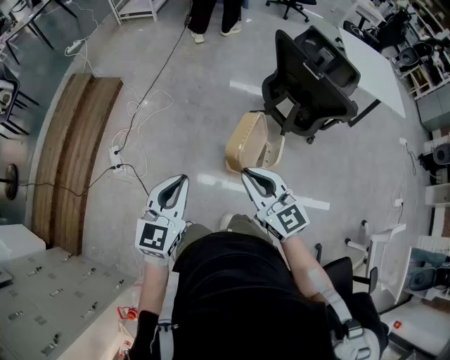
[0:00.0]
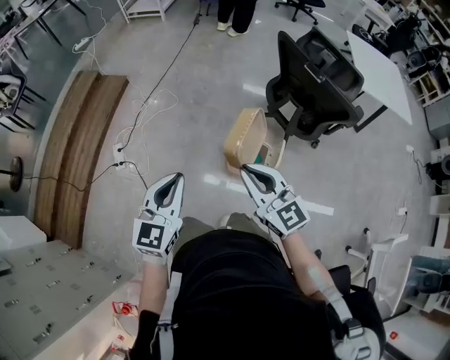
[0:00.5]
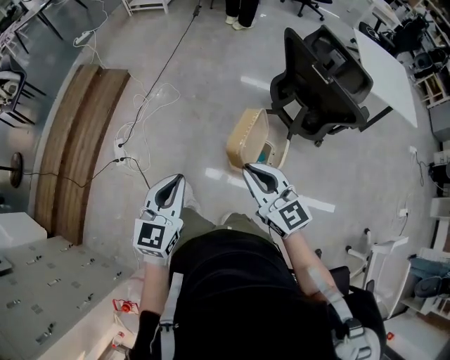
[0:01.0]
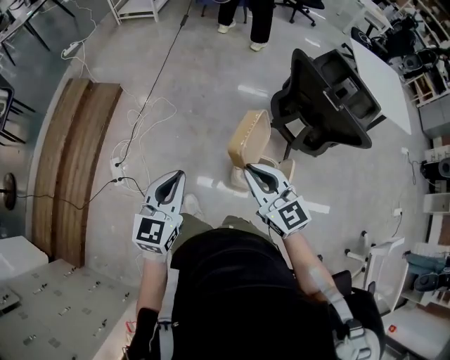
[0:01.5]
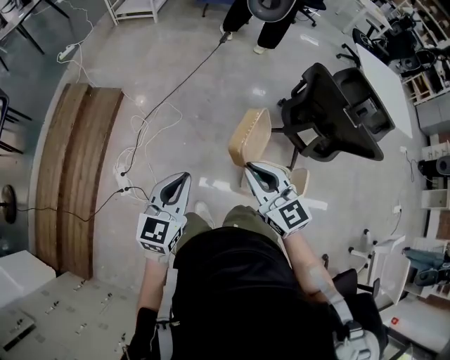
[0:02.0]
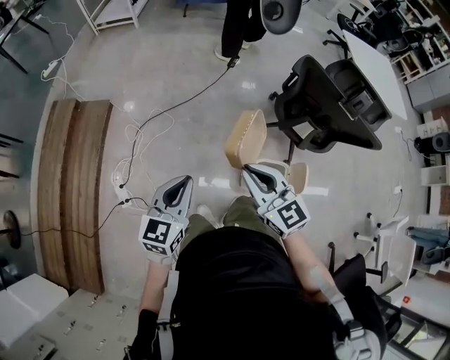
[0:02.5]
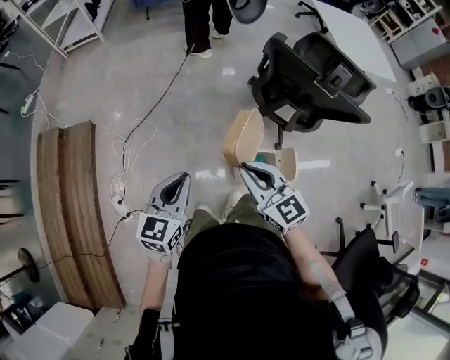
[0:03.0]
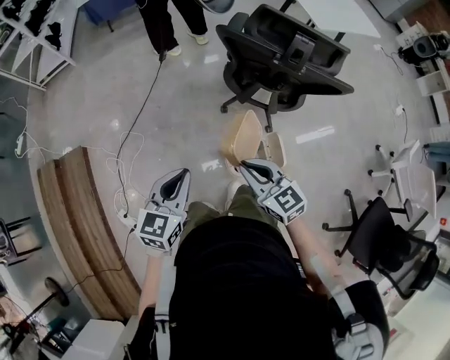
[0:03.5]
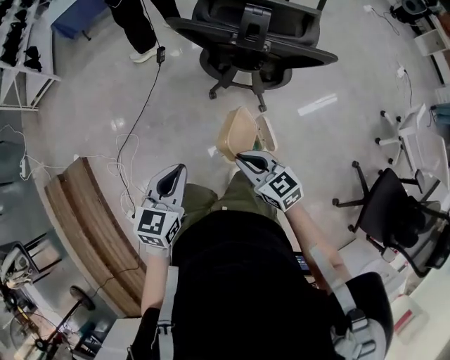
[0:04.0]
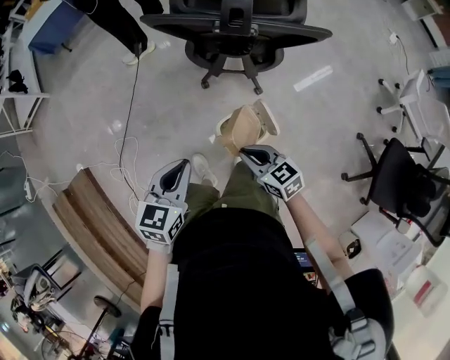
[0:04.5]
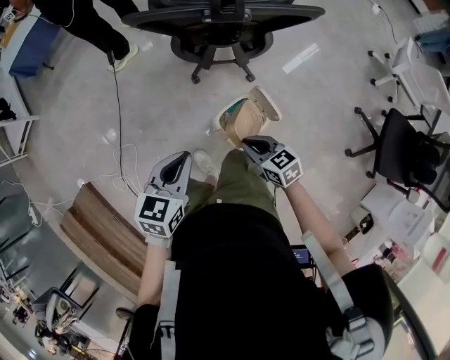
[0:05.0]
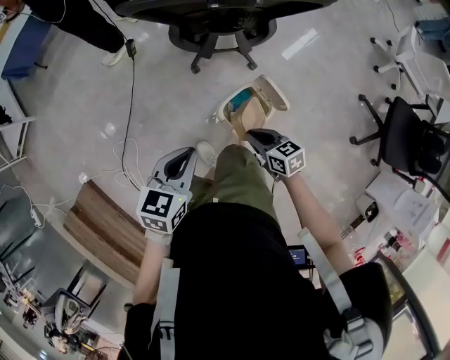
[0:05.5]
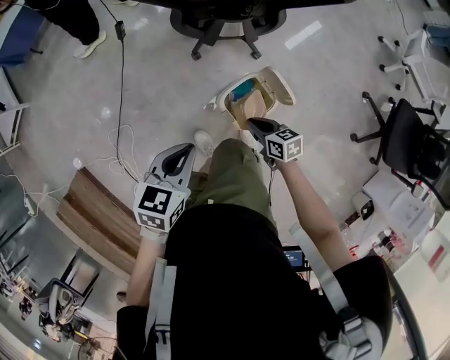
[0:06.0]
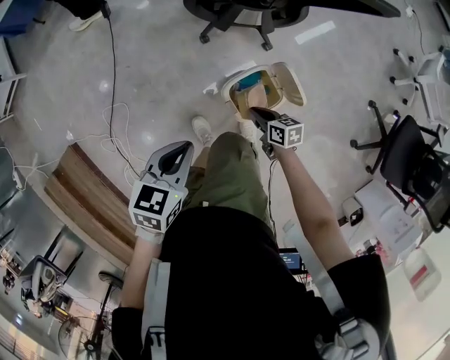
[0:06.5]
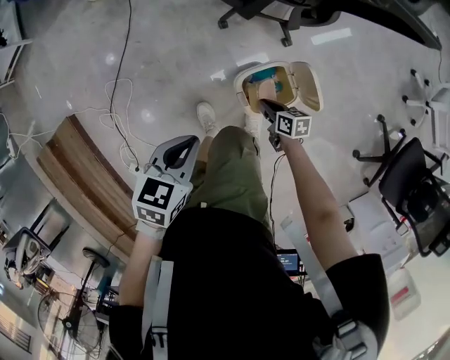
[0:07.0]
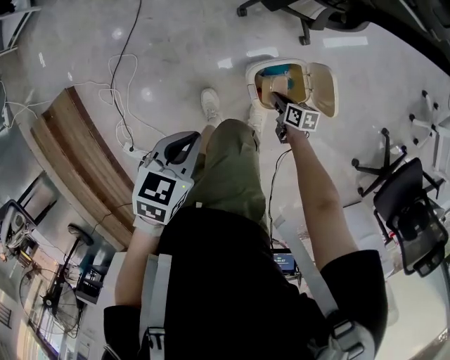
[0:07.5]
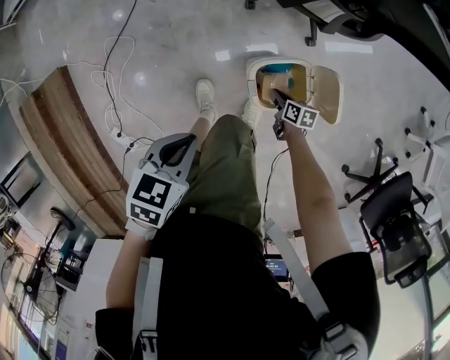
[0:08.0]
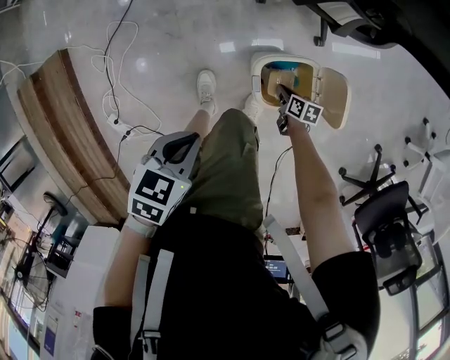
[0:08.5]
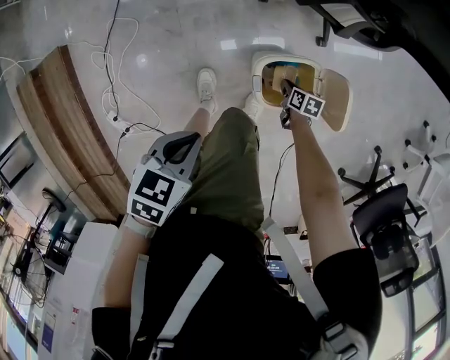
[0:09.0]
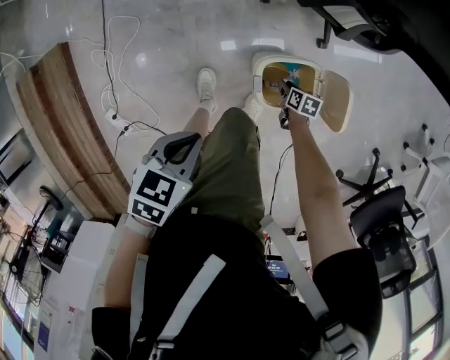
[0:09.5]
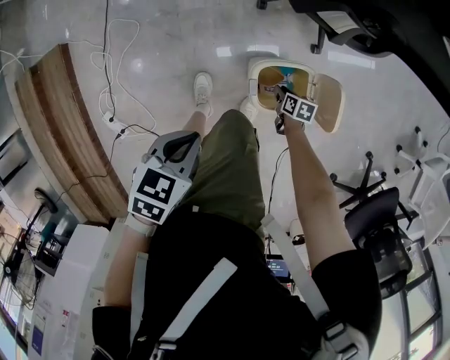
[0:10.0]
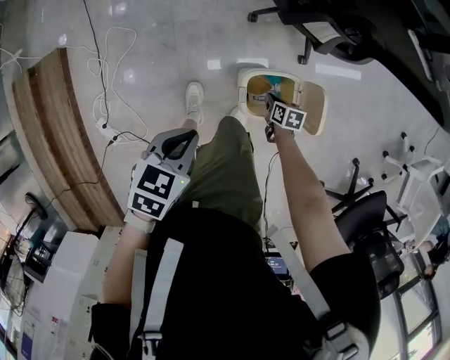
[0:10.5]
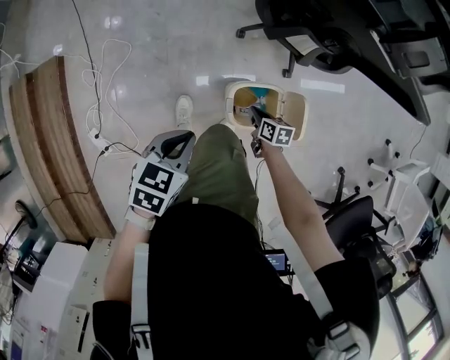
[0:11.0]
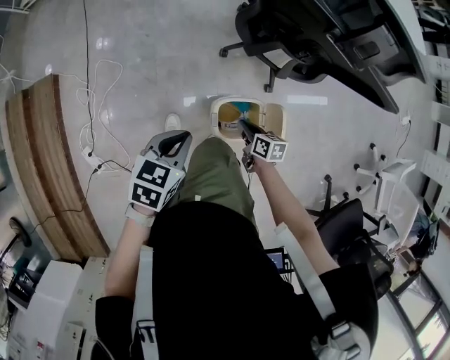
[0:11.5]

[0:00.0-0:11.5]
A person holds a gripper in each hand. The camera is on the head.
0:00.0 to 0:02.0: The two grippers go about 30 cm forward and to the left.
0:02.0 to 0:04.0: The left gripper moves approximately 30 cm, and swivels about 40 degrees. Meanwhile the right gripper shifts by approximately 30 cm, and rotates about 30 degrees.
0:04.0 to 0:06.0: The left gripper moves downward and forward, roughly 15 cm, and swivels roughly 30 degrees, while the right gripper moves downward, about 25 cm, and changes its angle by some 40 degrees.
0:06.0 to 0:07.5: The left gripper moves downward and to the left, some 10 cm, while the right gripper moves downward, approximately 20 cm.
0:07.5 to 0:09.5: The right gripper travels downward by roughly 10 cm, and opens; the left gripper moves roughly 5 cm.
0:09.5 to 0:11.5: The left gripper travels upward by about 10 cm. The right gripper goes about 25 cm upward, changes its angle by about 20 degrees, and closes its fingers.

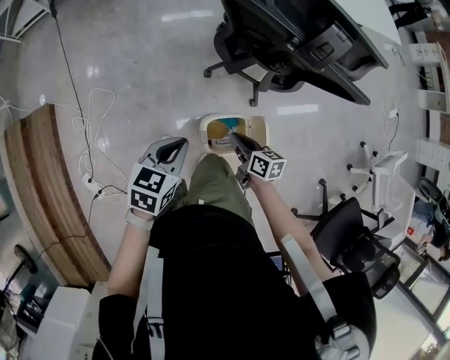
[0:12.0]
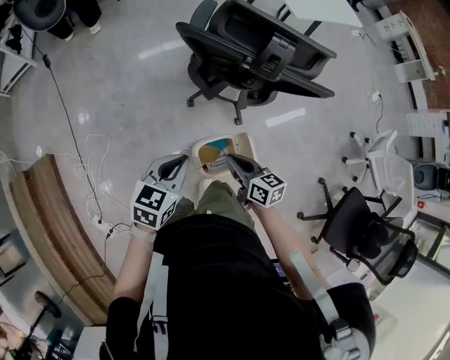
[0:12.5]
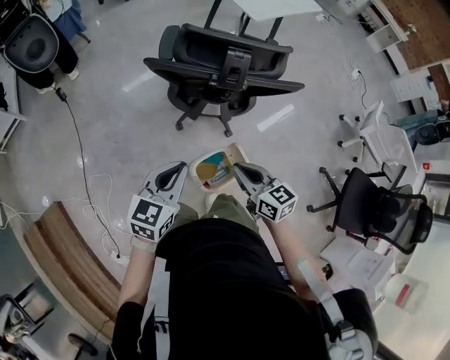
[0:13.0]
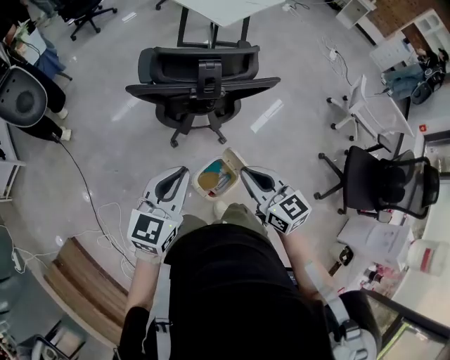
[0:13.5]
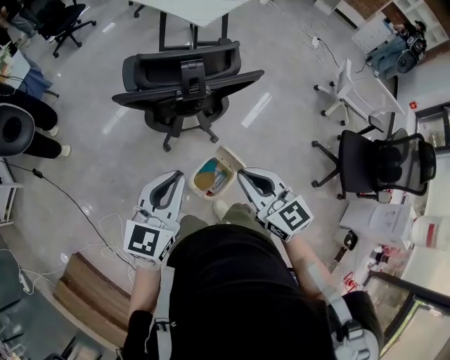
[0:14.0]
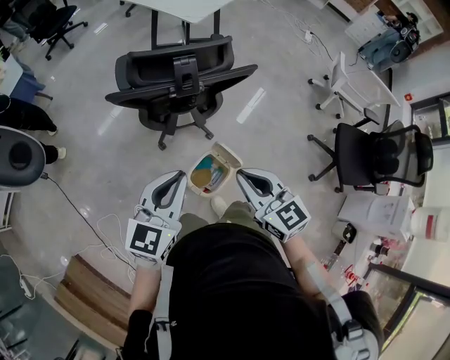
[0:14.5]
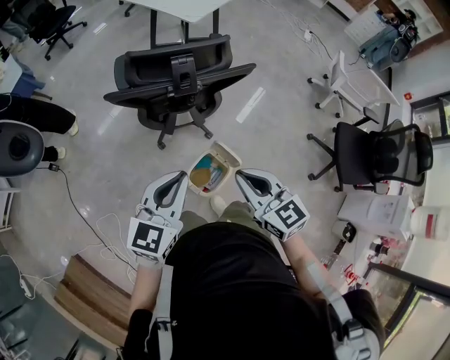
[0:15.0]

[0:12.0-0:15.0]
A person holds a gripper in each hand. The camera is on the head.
0:12.0 to 0:13.5: The two grippers go some 25 cm upward. The left gripper turns by some 40 degrees, while the right gripper turns by roughly 40 degrees.
0:13.5 to 0:15.0: The grippers move only a little.

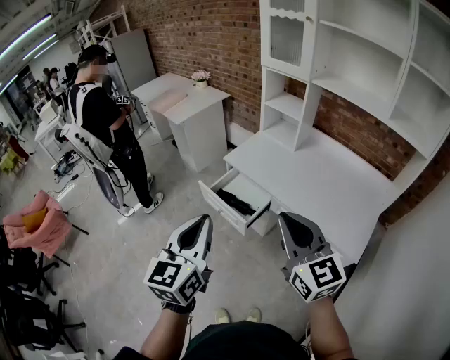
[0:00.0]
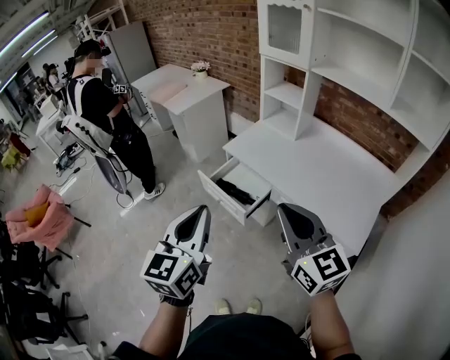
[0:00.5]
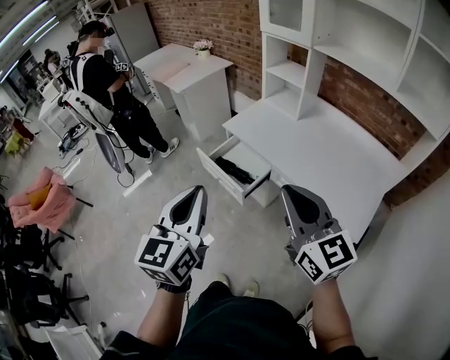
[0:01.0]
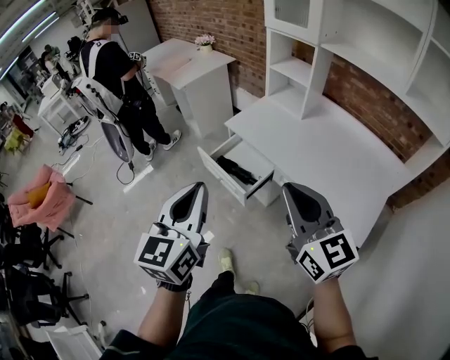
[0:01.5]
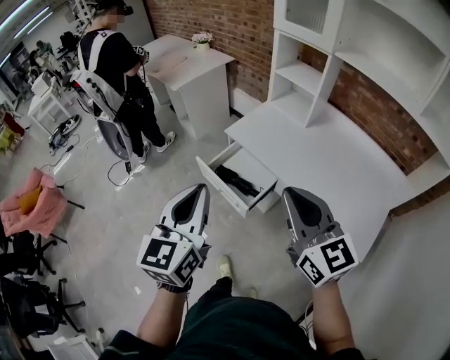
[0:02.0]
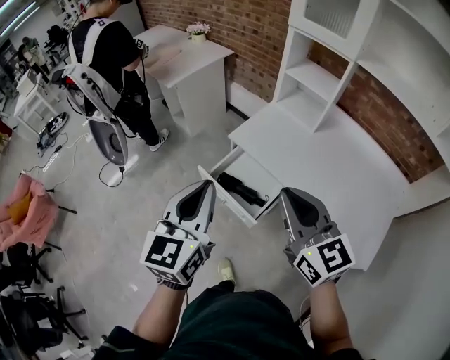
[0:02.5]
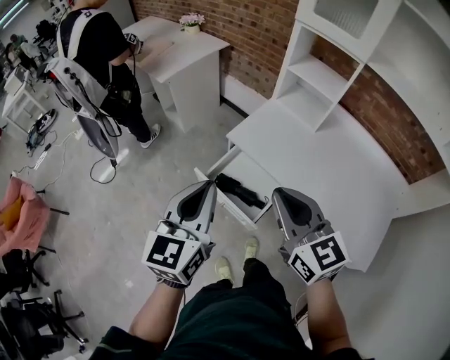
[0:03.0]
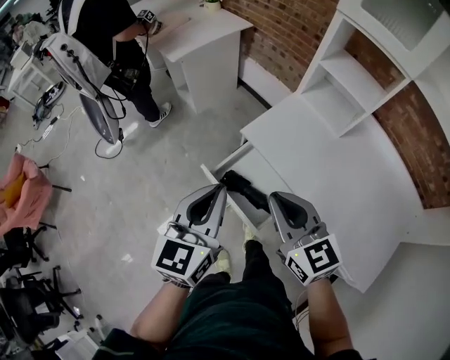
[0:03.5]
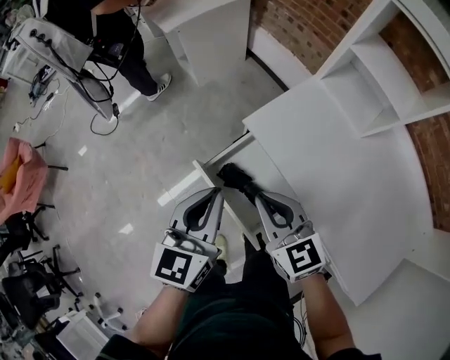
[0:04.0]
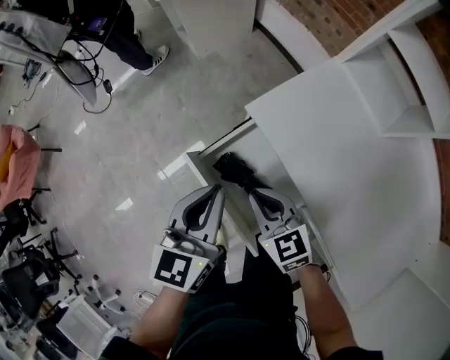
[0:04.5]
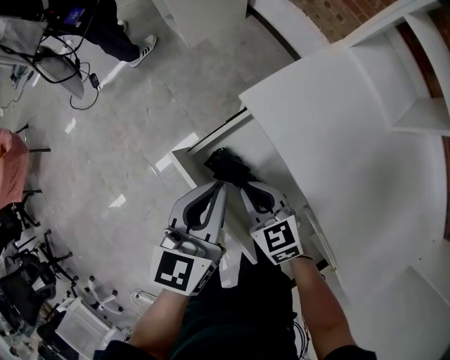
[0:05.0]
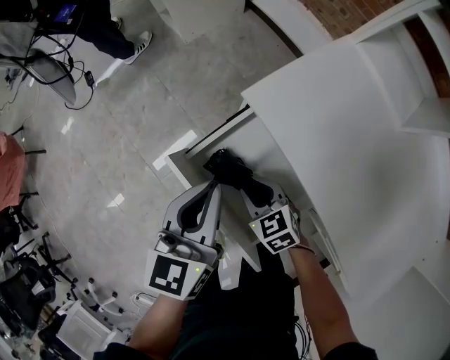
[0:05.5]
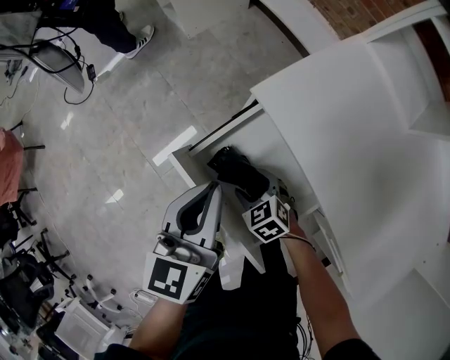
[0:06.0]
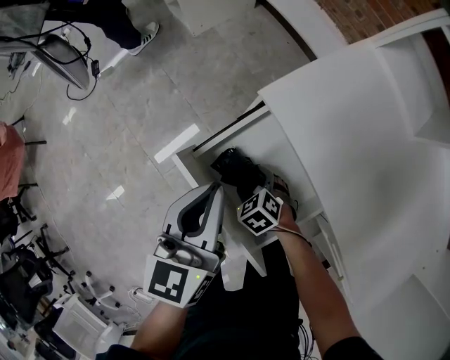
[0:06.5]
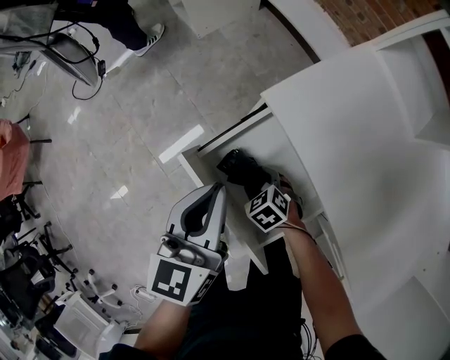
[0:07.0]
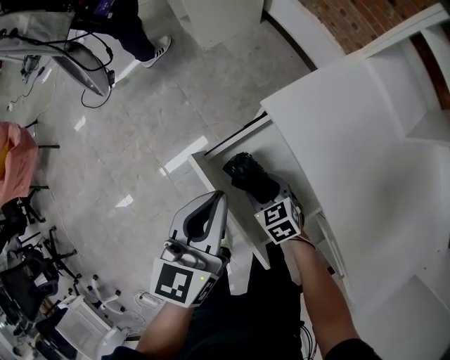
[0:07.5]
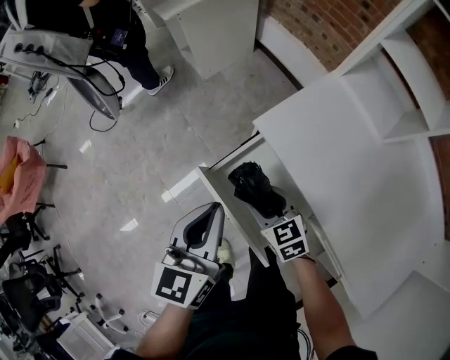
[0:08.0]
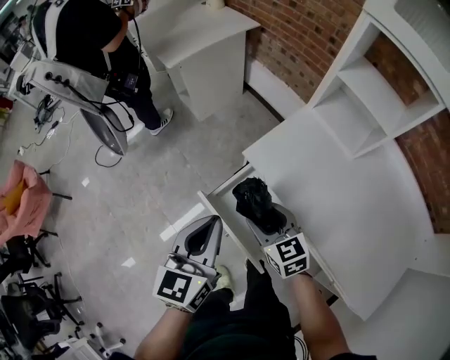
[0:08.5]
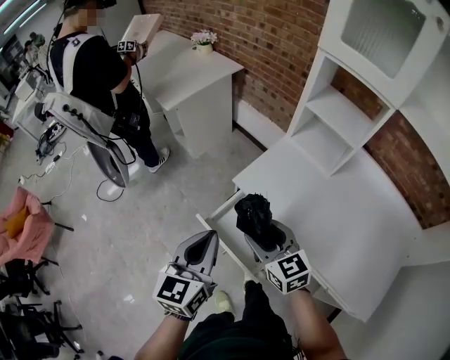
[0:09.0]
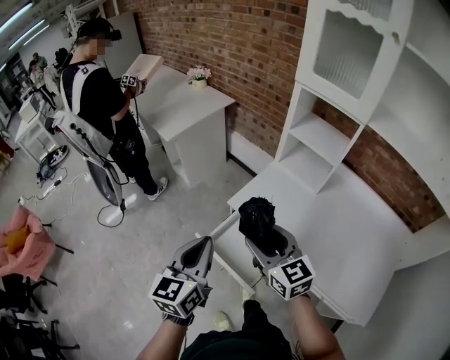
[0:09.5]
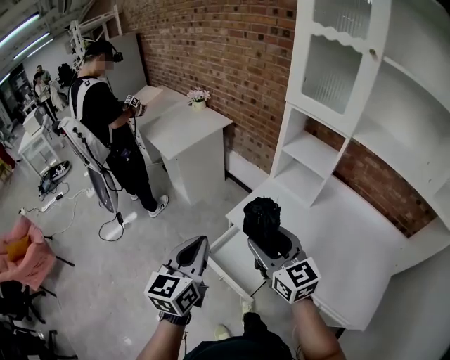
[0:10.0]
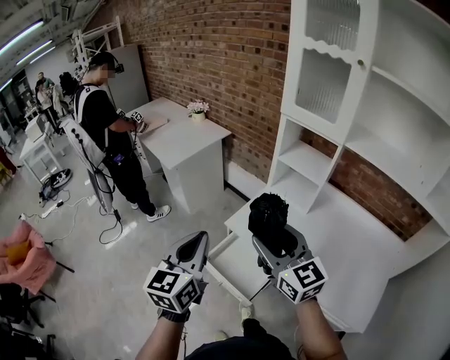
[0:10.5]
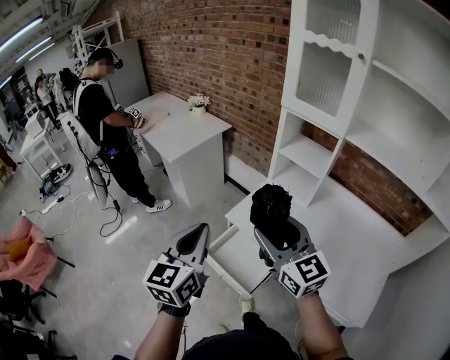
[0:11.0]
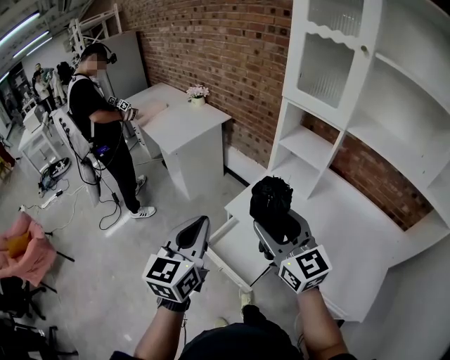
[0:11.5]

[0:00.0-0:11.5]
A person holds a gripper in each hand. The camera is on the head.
0:00.0 to 0:02.0: Both grippers move forward, about 10 cm.
0:02.0 to 0:04.0: Both grippers travel together forward and downward, roughly 40 cm. The right gripper changes its angle by roughly 30 degrees.
0:04.0 to 0:06.0: The left gripper goes roughly 20 cm downward; the right gripper travels downward by roughly 35 cm, points its fingers approximately 40 degrees further downward, and opens its fingers.
0:06.0 to 0:07.5: The left gripper moves roughly 5 cm.
0:07.5 to 0:09.5: The right gripper heads upward, covering some 50 cm, and tilts its fingers approximately 40 degrees upward; the left gripper goes approximately 25 cm upward.
0:09.5 to 0:11.5: Both grippers move upward, some 10 cm.

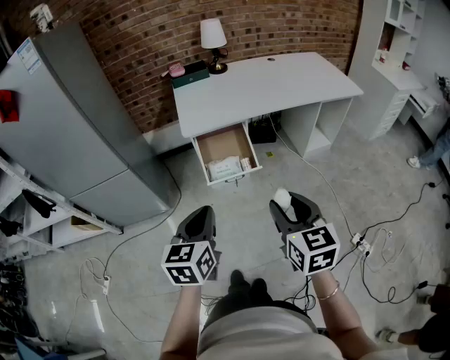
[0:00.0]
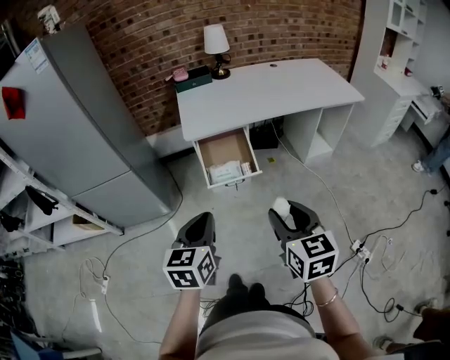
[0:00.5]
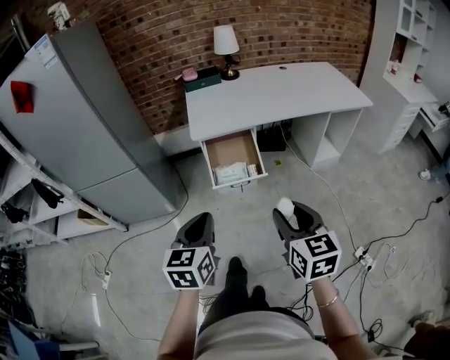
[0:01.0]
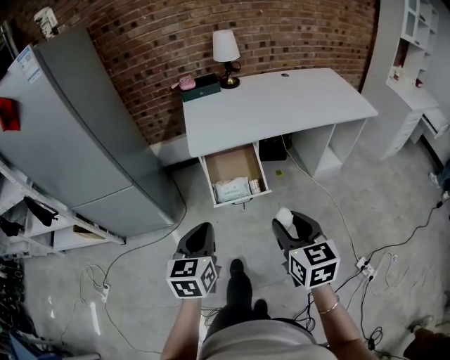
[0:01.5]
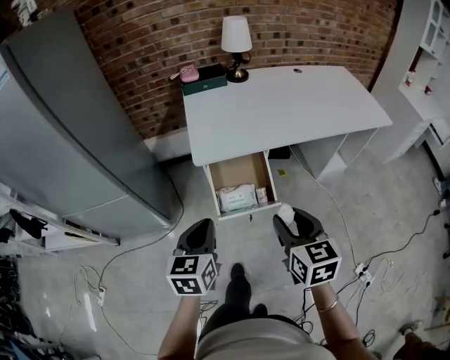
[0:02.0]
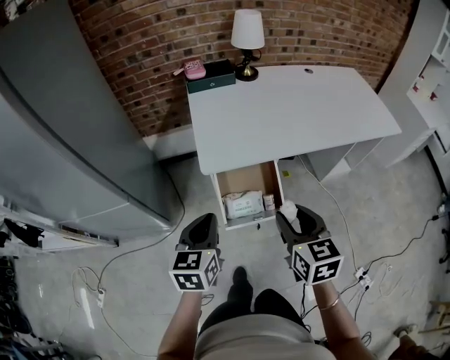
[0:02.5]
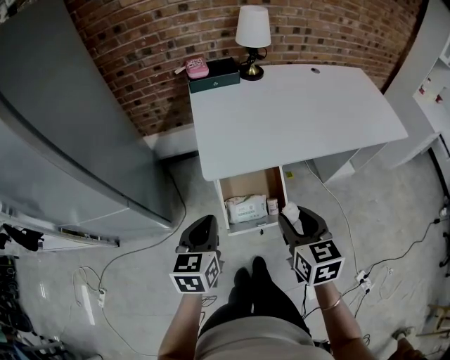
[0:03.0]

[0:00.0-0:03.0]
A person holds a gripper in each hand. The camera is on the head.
0:00.0 to 0:01.5: The two grippers go some 10 cm forward.
0:01.5 to 0:03.0: Both grippers travel together forward, about 30 cm.